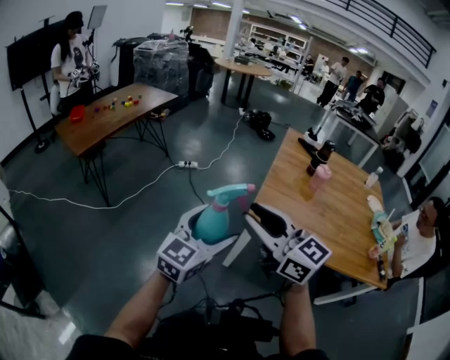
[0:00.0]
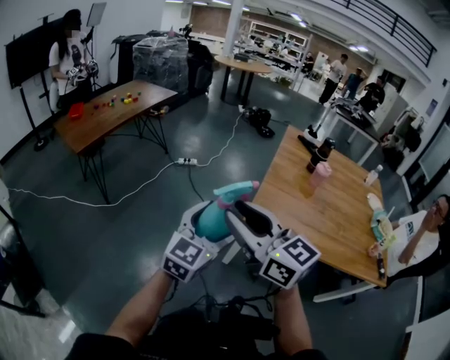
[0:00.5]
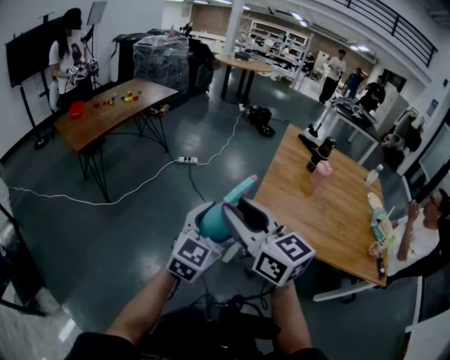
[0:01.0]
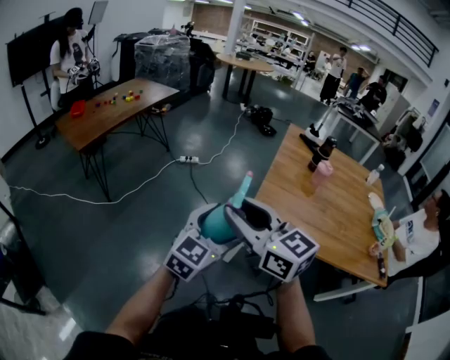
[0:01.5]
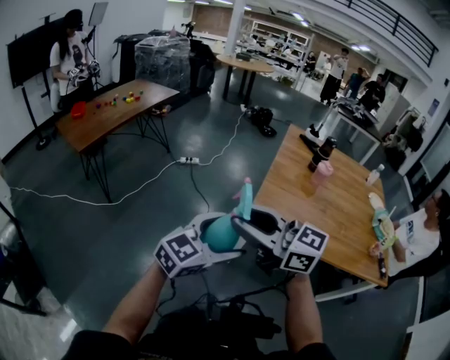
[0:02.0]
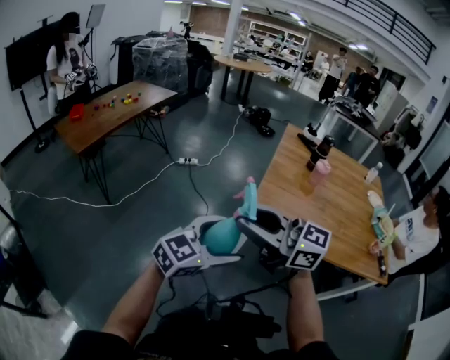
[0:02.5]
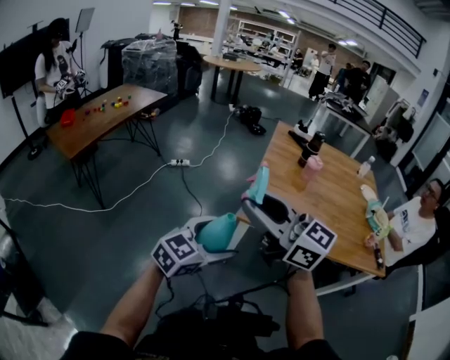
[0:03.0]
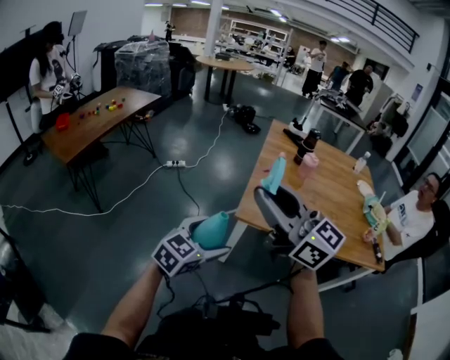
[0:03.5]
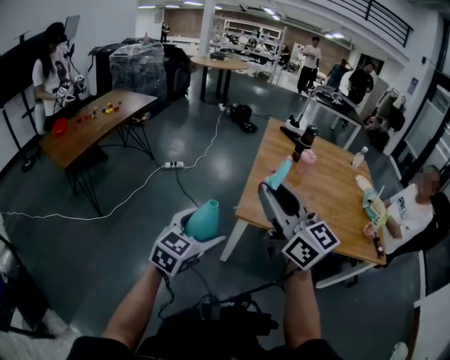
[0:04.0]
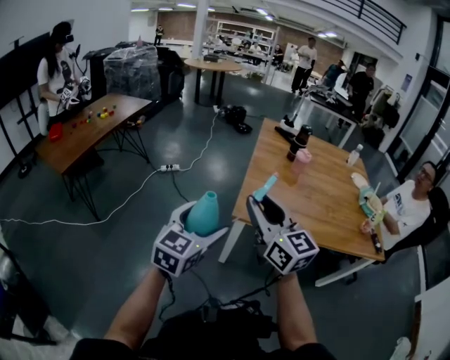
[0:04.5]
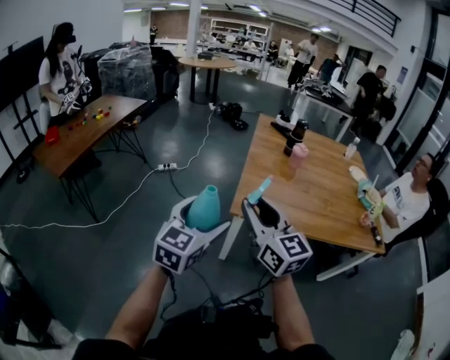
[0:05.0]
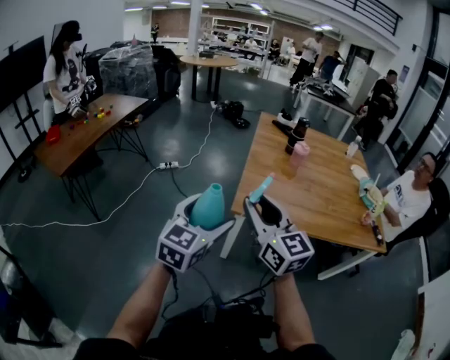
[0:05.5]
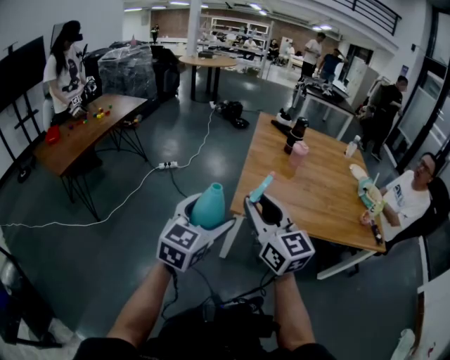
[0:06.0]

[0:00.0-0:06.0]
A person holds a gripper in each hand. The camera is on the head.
0:00.0 to 0:02.0: The left gripper ends up about 5 cm from where it was, and changes its angle by roughly 20 degrees.
0:02.0 to 0:04.0: The left gripper moves roughly 5 cm; the right gripper ends up roughly 10 cm from where it was, and rotates some 40 degrees.
0:04.0 to 0:06.0: The right gripper goes about 5 cm downward, while the left gripper moves upward, about 5 cm.

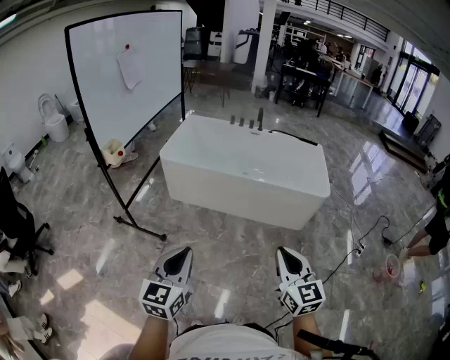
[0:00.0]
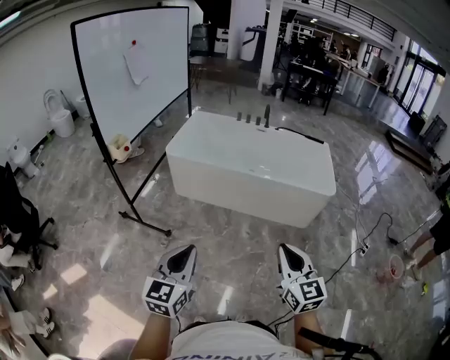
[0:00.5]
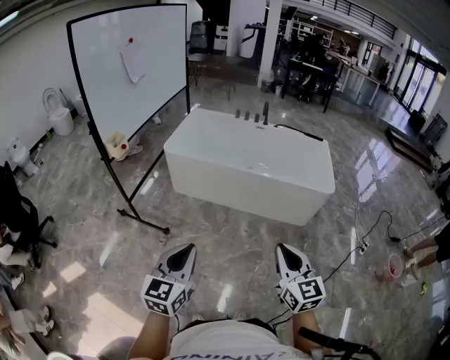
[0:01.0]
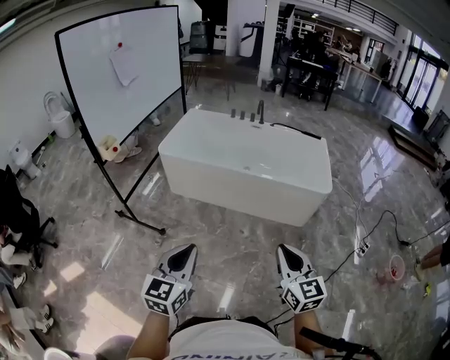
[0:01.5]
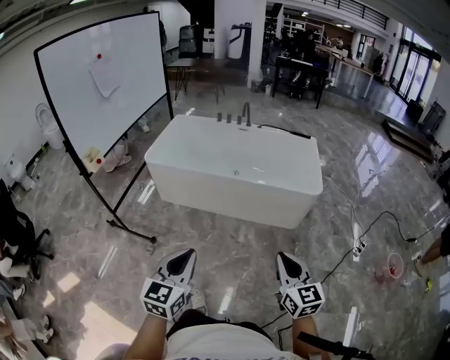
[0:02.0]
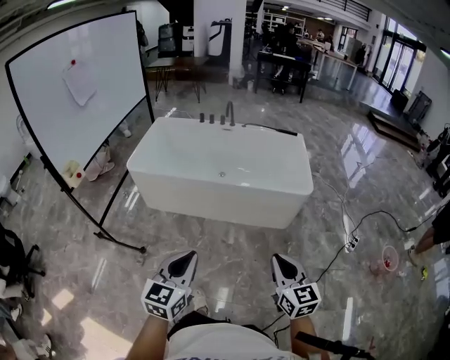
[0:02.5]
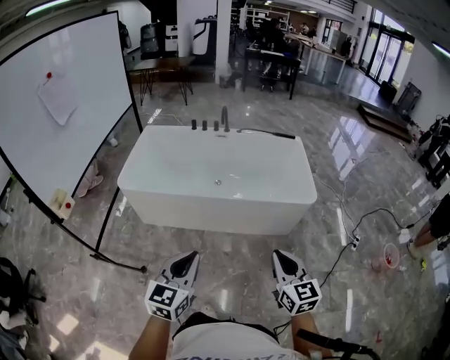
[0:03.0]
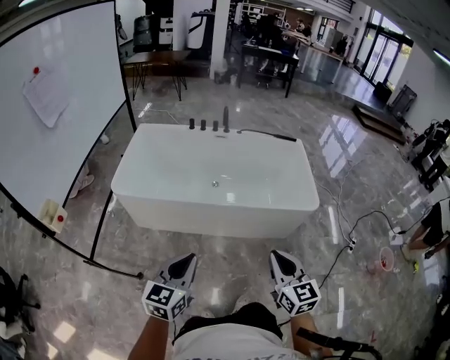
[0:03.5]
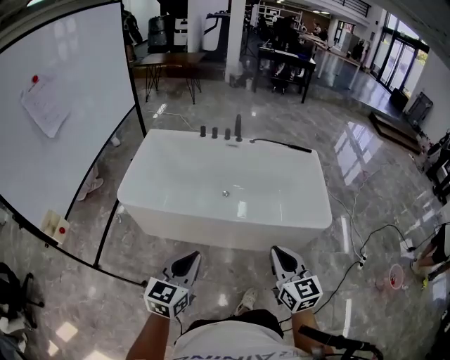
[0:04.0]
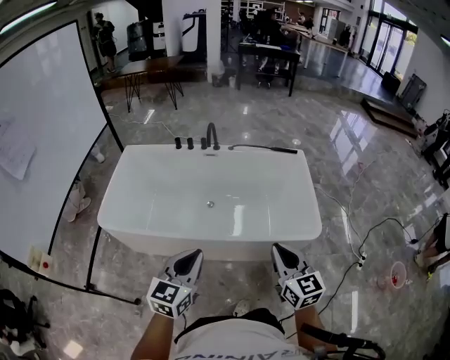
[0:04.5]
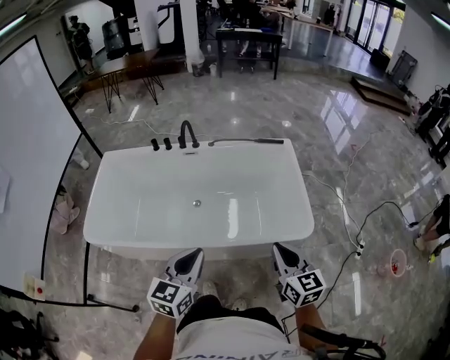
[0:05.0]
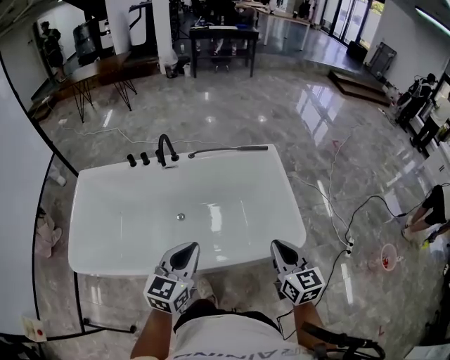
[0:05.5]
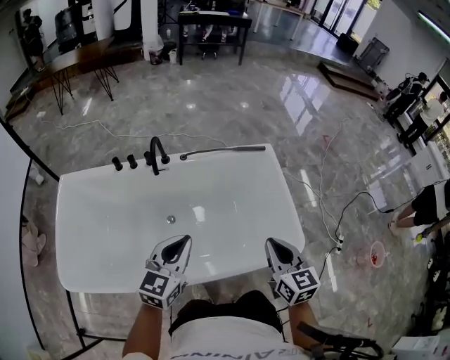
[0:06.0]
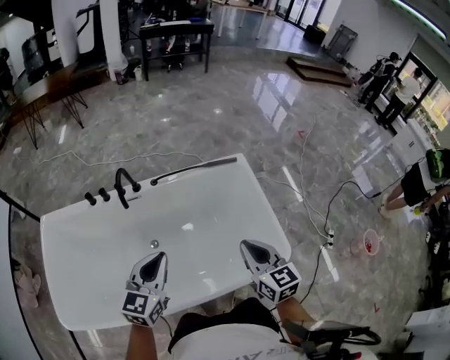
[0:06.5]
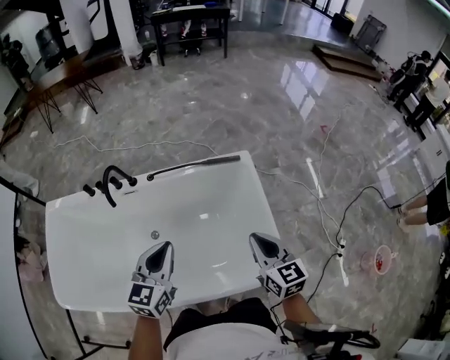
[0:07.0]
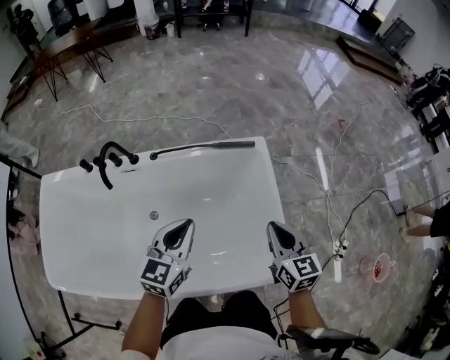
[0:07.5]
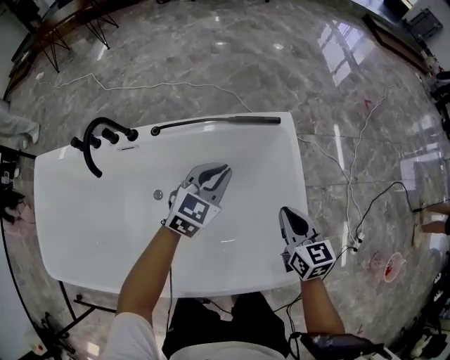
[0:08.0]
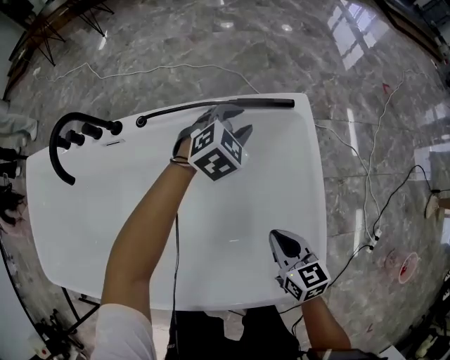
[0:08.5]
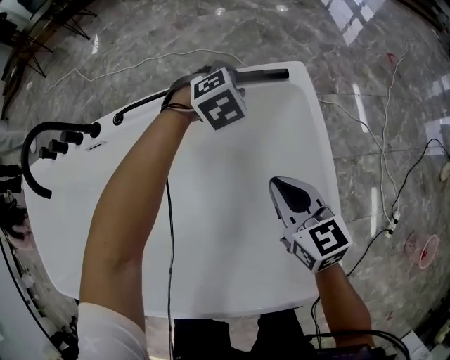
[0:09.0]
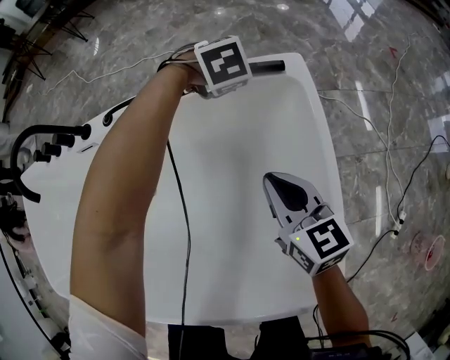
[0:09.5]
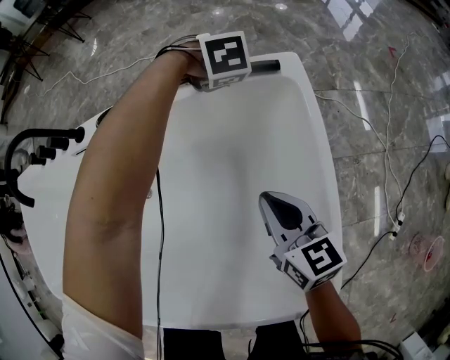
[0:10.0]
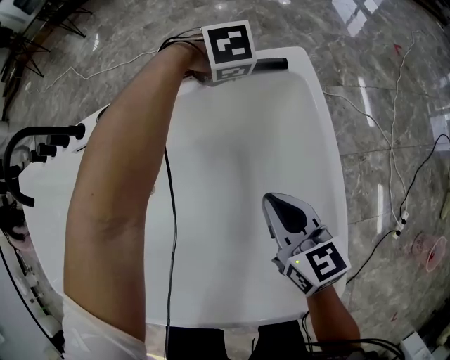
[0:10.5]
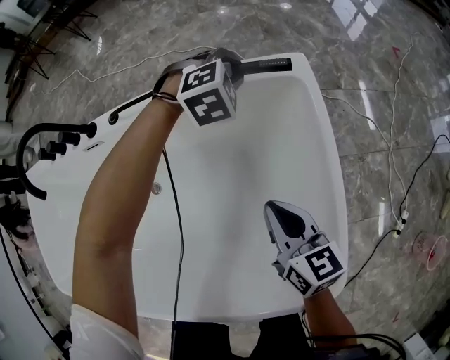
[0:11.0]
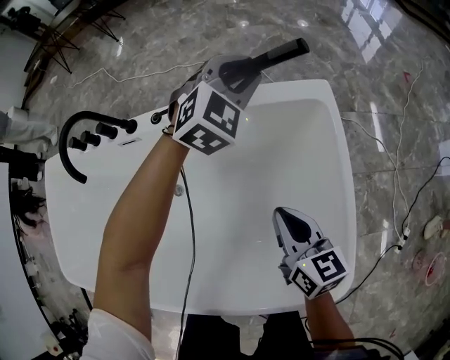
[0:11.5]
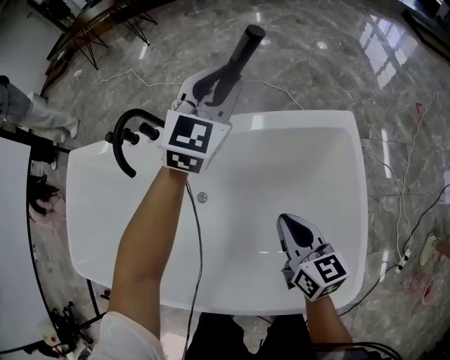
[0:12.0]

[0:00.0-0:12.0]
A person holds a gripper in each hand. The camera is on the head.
0:00.0 to 0:02.0: Both grippers travel together to the right, approximately 20 cm.
0:02.0 to 0:04.0: The two grippers travel together, forward, some 40 cm.
0:04.0 to 0:06.0: The two grippers travel together, forward, approximately 60 cm. The right gripper changes its angle by some 20 degrees.
0:06.0 to 0:08.0: The right gripper goes about 40 cm forward, downward and to the right. The left gripper is displaced forward, to the right and downward by some 50 cm.
0:08.0 to 0:10.0: Both grippers travel together downward, roughly 25 cm. The left gripper angles its fingers downward, by about 50 degrees, and opens up.
0:10.0 to 0:12.0: The left gripper goes roughly 35 cm upward, and angles its fingers upward, by approximately 70 degrees. Meanwhile the right gripper changes place by approximately 20 cm.

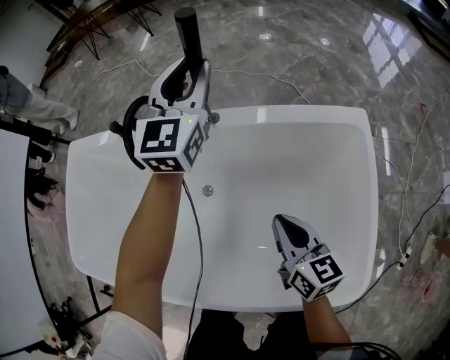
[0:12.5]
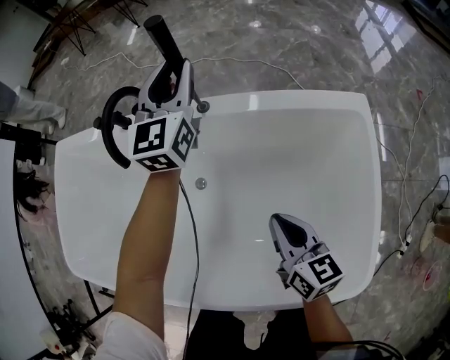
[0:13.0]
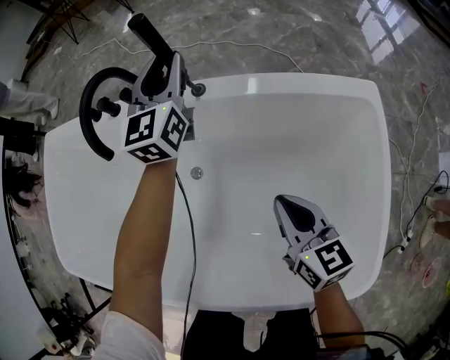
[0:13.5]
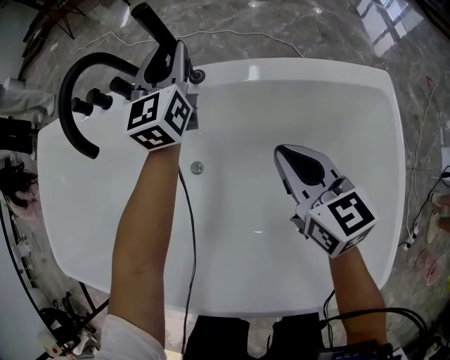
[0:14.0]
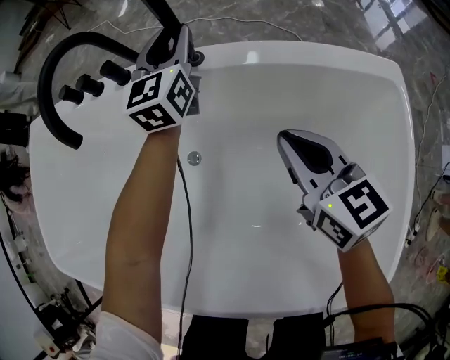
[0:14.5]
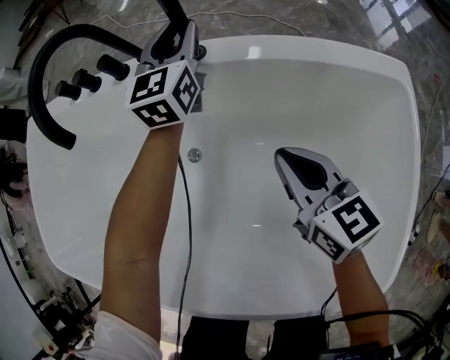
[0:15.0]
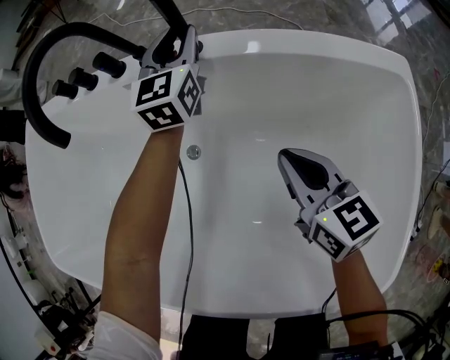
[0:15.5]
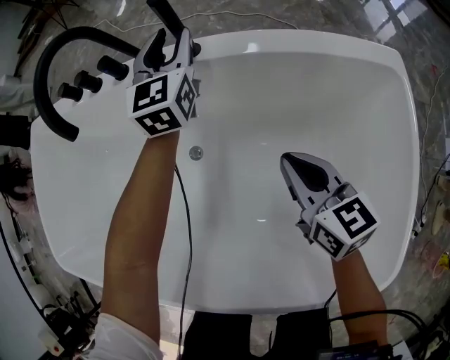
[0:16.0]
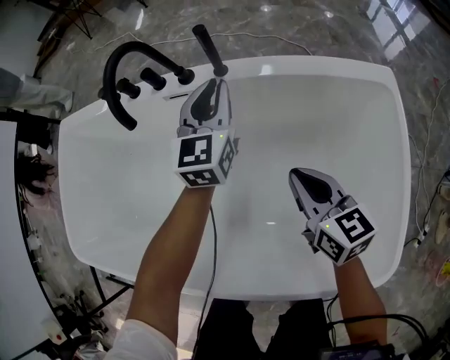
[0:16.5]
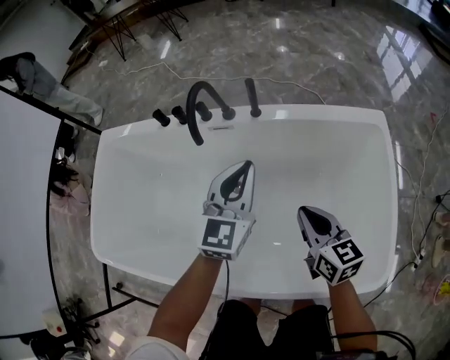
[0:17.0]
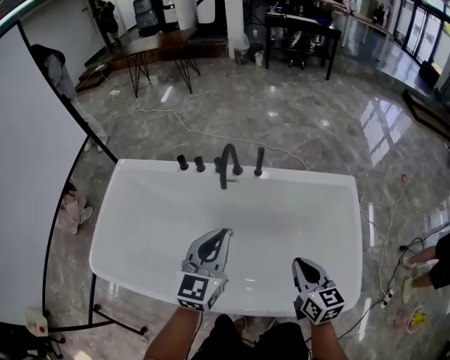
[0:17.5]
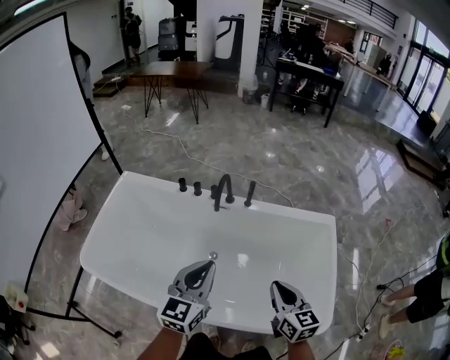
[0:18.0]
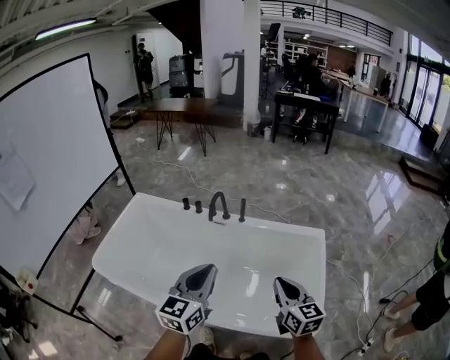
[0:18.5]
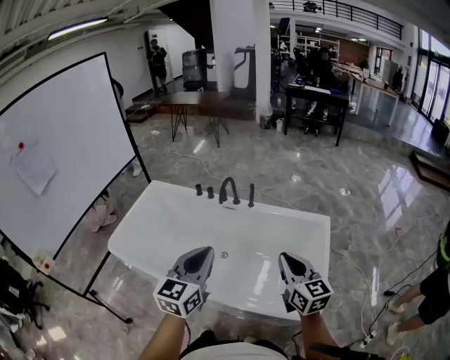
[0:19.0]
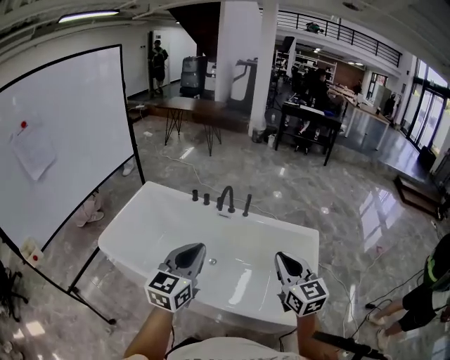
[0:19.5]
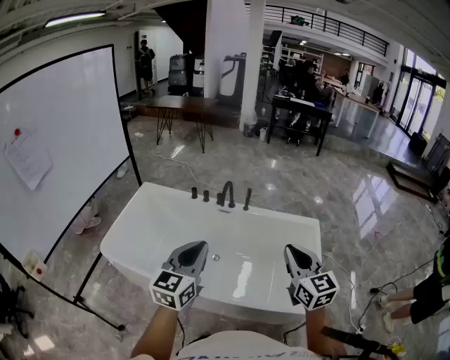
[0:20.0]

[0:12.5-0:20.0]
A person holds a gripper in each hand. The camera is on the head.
0:12.5 to 0:14.5: The left gripper travels downward by about 25 cm. Meanwhile the right gripper moves forward and downward, some 15 cm.
0:14.5 to 0:16.5: The two grippers go some 10 cm backward.
0:16.5 to 0:18.0: The right gripper heads upward and backward, covering some 40 cm, while the left gripper heads backward, upward and to the left, covering approximately 50 cm.
0:18.0 to 0:20.0: The left gripper goes some 25 cm backward and upward, while the right gripper is displaced upward and backward by some 30 cm, and swivels some 20 degrees.

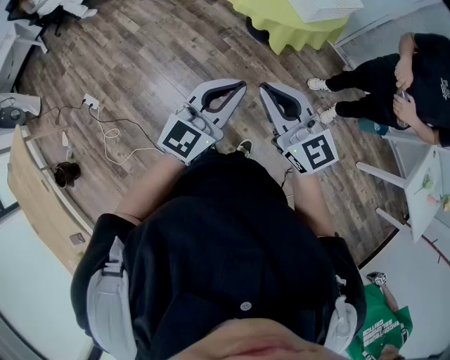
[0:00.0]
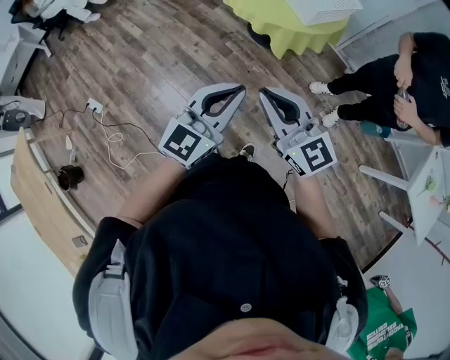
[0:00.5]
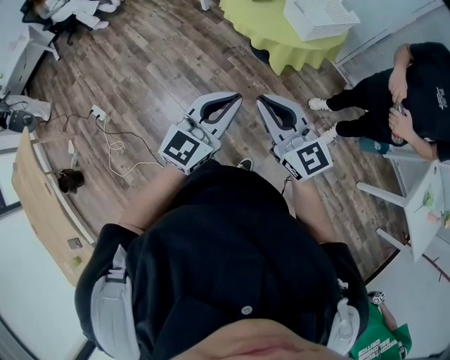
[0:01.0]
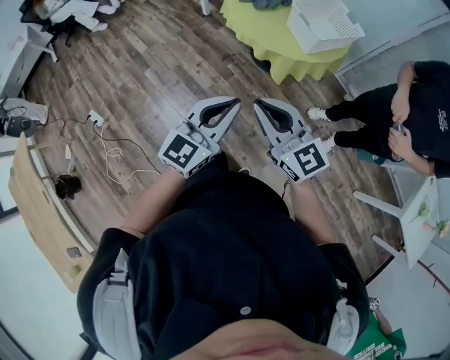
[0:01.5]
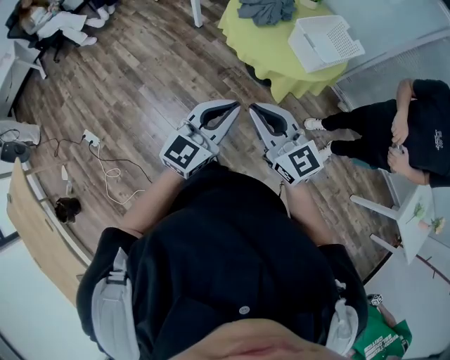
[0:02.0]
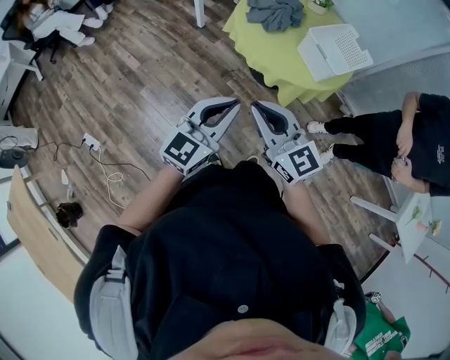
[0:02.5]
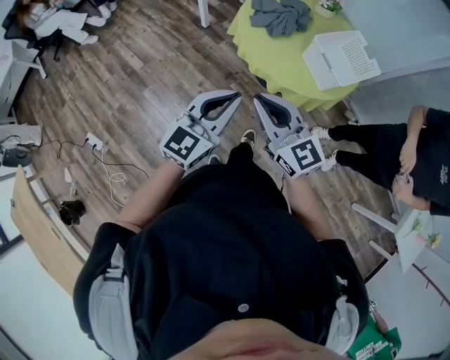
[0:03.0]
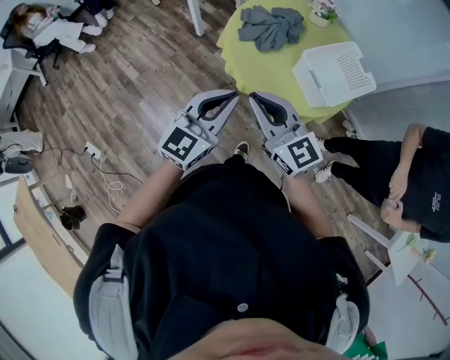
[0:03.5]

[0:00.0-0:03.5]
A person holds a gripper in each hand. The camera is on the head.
0:00.0 to 0:02.0: The grippers both shift forward and to the left by about 20 cm.
0:02.0 to 0:03.5: Both grippers move forward, about 25 cm.
